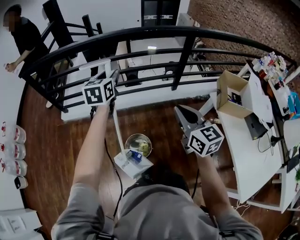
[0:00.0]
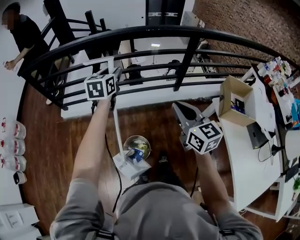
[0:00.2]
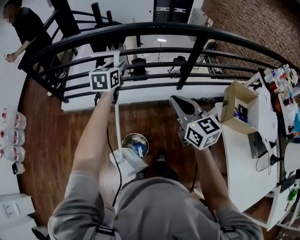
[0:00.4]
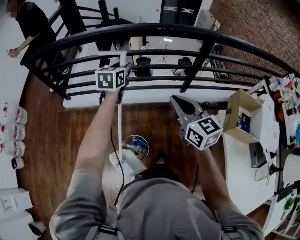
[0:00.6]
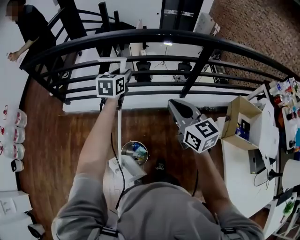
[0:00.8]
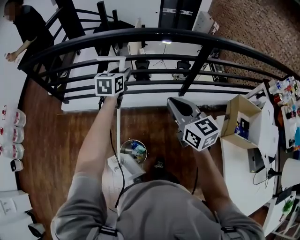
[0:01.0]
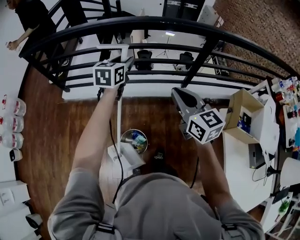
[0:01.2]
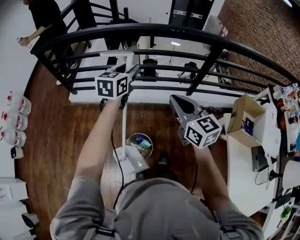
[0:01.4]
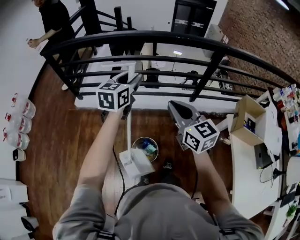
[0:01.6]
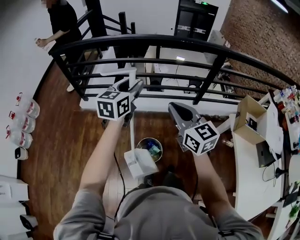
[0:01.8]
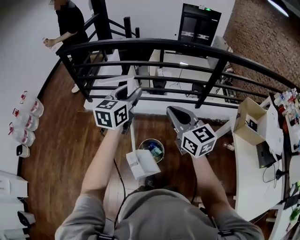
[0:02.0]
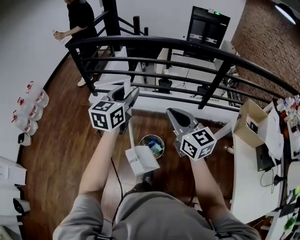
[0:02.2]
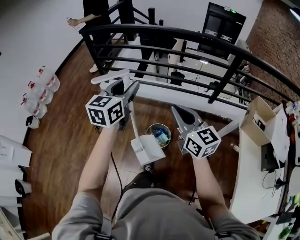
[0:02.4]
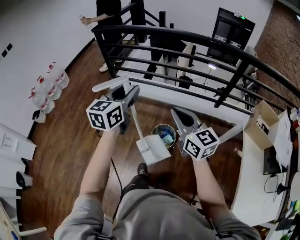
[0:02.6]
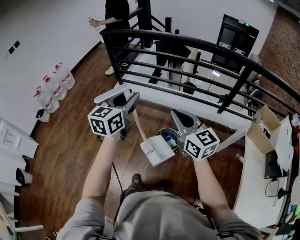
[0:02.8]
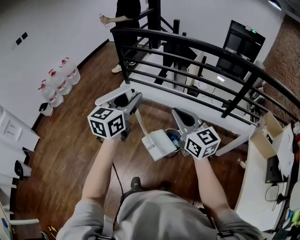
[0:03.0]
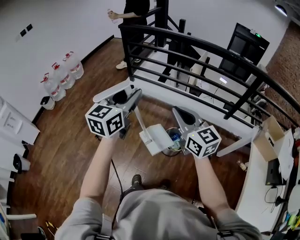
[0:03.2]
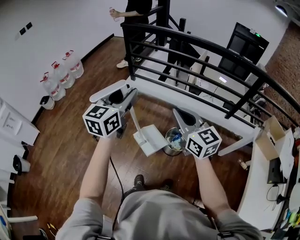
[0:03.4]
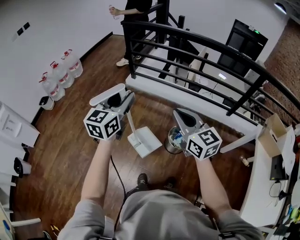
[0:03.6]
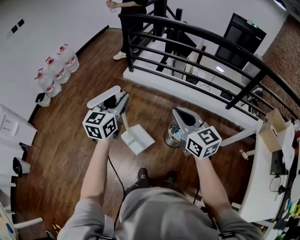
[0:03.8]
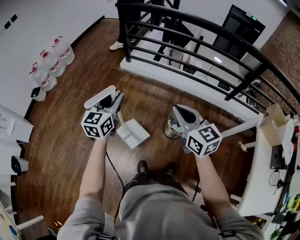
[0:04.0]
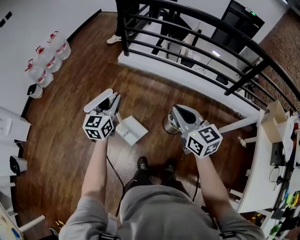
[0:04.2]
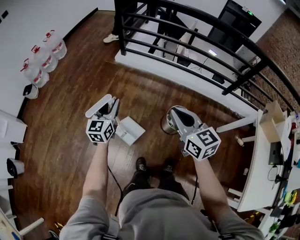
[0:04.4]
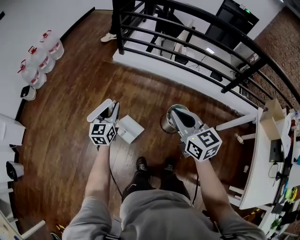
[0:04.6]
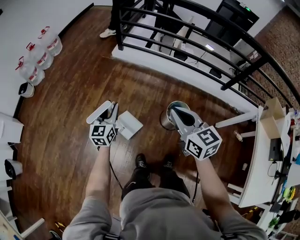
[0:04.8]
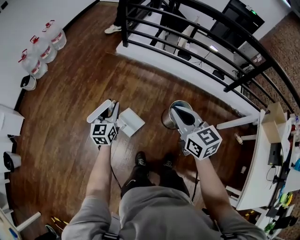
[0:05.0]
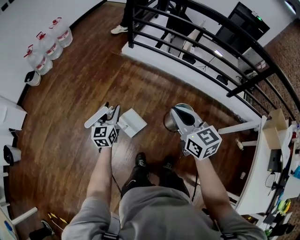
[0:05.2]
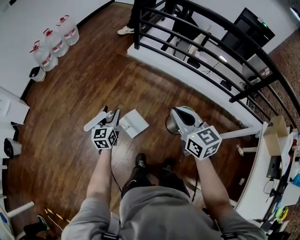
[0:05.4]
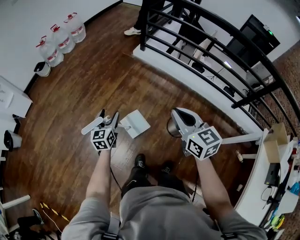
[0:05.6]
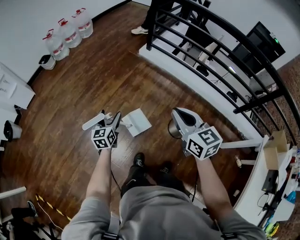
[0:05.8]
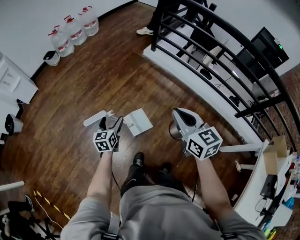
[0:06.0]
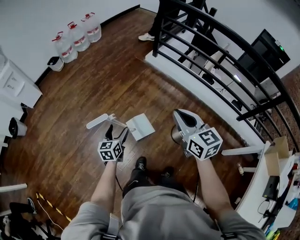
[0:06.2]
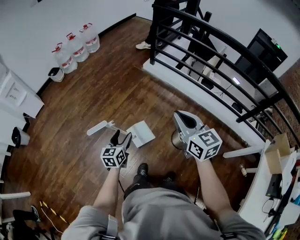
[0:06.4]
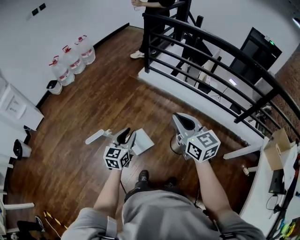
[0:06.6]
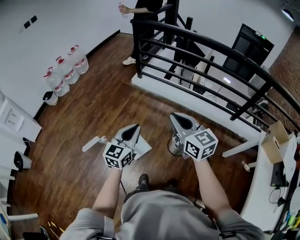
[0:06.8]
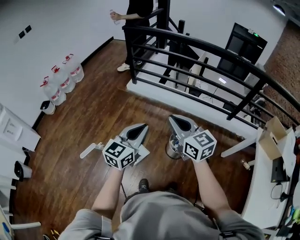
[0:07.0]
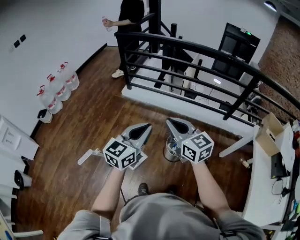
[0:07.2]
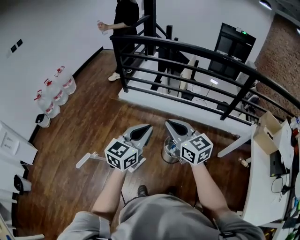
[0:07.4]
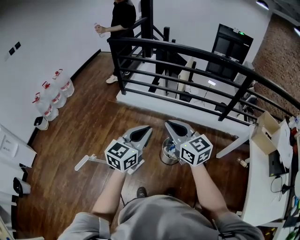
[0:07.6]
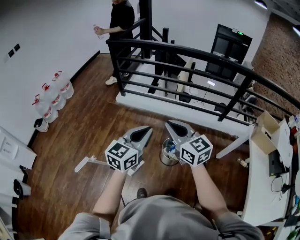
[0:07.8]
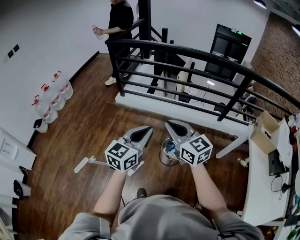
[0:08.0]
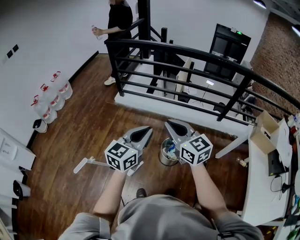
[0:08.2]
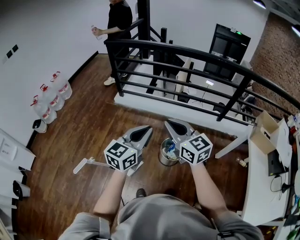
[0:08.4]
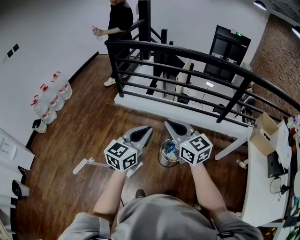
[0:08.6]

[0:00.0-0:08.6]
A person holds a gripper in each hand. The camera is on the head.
0.0 to 1.4 s: The right gripper heads forward, covering roughly 10 cm, while the left gripper heads forward, covering about 5 cm.
1.4 to 2.8 s: The grippers both shift backward and to the left by some 35 cm. The right gripper changes its angle by about 20 degrees; the left gripper changes its angle by approximately 20 degrees.
2.8 to 4.4 s: The left gripper travels to the left and downward by about 40 cm. The right gripper moves to the left and downward, approximately 25 cm.
4.4 to 5.8 s: The left gripper is displaced to the left, downward and backward by roughly 20 cm, swivels about 30 degrees, and opens, while the right gripper shifts roughly 5 cm to the left.
5.8 to 7.2 s: The left gripper ends up about 40 cm from where it was, rotates roughly 50 degrees, and closes up; the right gripper moves roughly 15 cm.
7.2 to 8.6 s: The grippers move only a little.

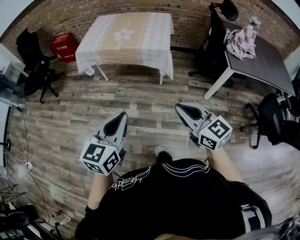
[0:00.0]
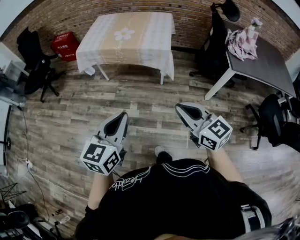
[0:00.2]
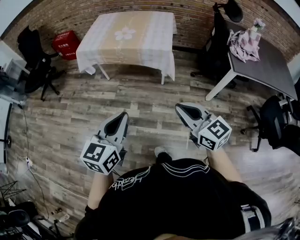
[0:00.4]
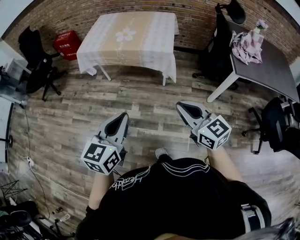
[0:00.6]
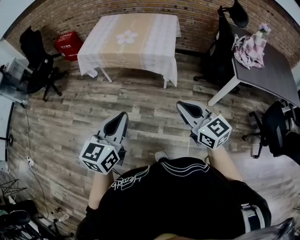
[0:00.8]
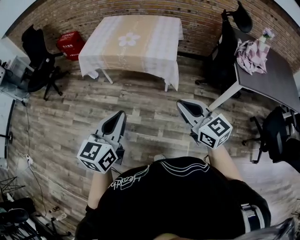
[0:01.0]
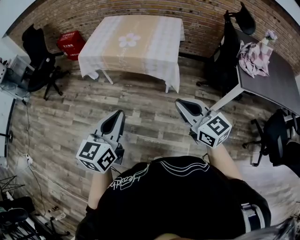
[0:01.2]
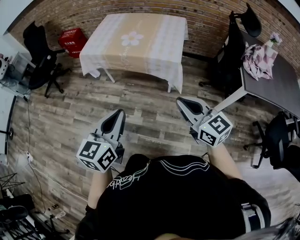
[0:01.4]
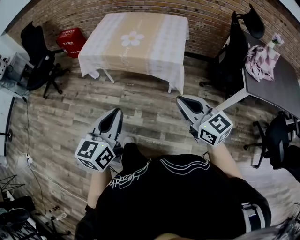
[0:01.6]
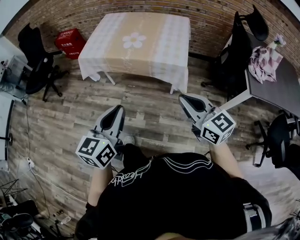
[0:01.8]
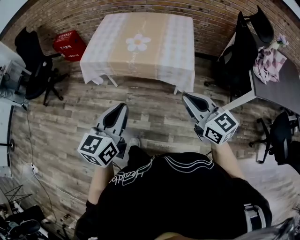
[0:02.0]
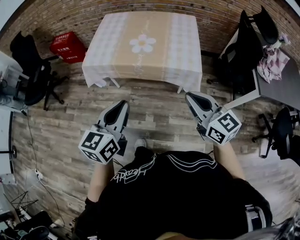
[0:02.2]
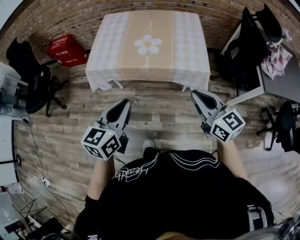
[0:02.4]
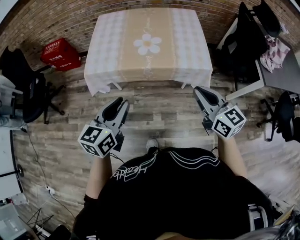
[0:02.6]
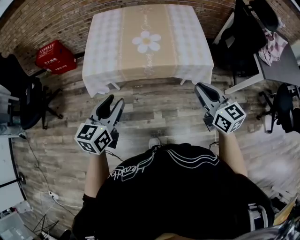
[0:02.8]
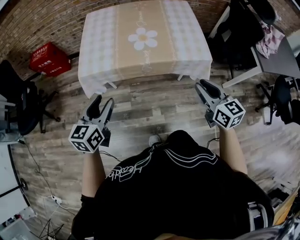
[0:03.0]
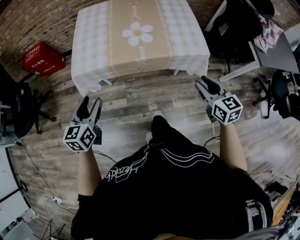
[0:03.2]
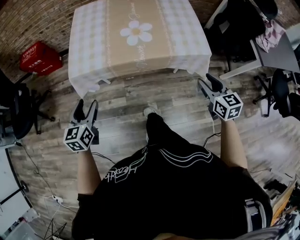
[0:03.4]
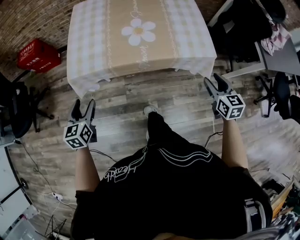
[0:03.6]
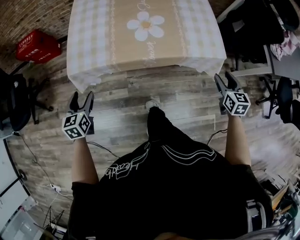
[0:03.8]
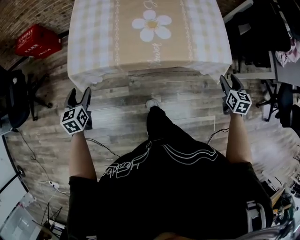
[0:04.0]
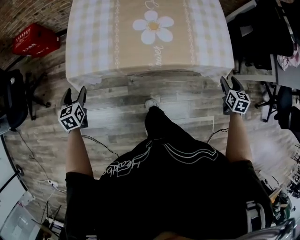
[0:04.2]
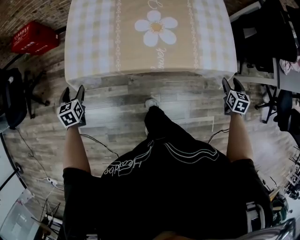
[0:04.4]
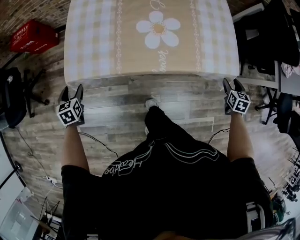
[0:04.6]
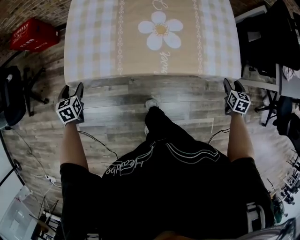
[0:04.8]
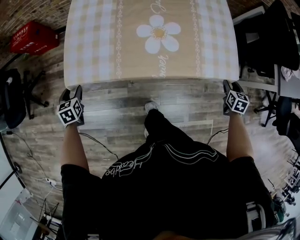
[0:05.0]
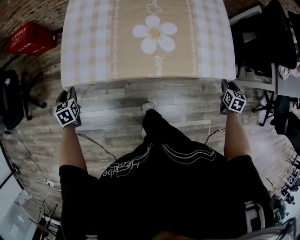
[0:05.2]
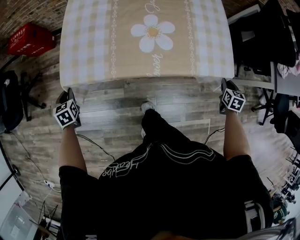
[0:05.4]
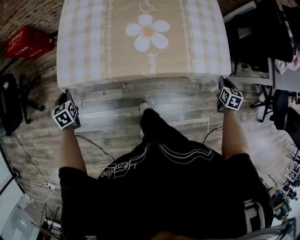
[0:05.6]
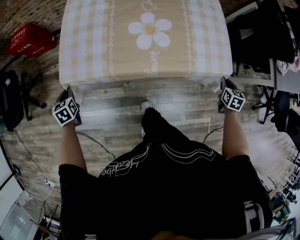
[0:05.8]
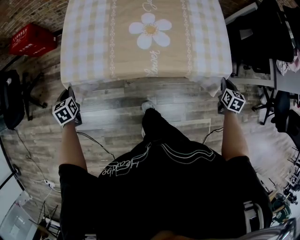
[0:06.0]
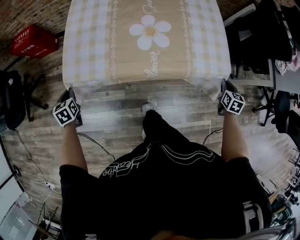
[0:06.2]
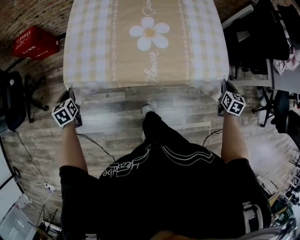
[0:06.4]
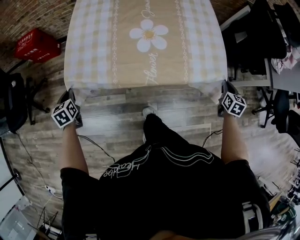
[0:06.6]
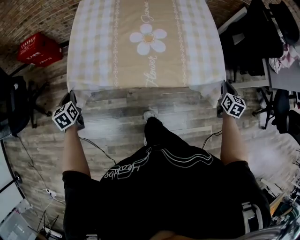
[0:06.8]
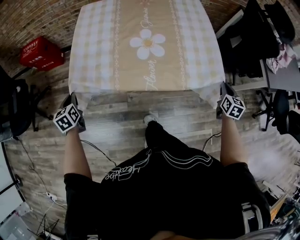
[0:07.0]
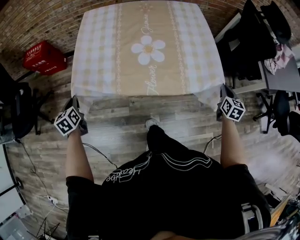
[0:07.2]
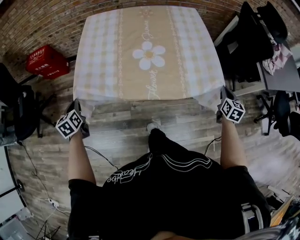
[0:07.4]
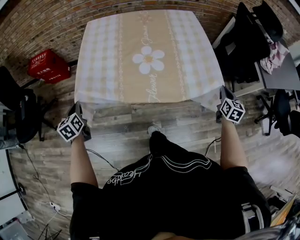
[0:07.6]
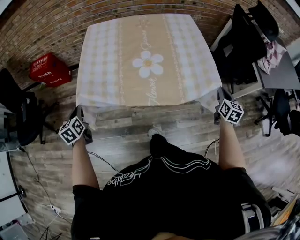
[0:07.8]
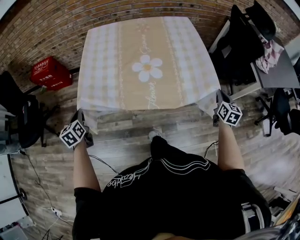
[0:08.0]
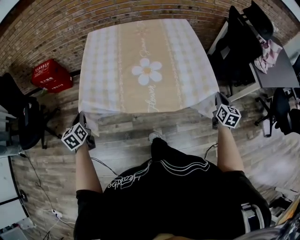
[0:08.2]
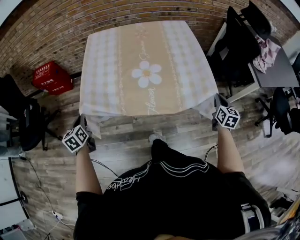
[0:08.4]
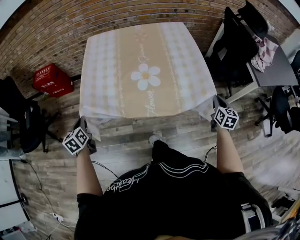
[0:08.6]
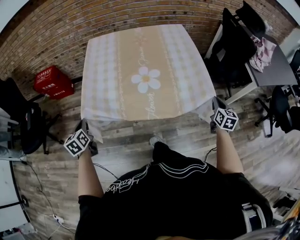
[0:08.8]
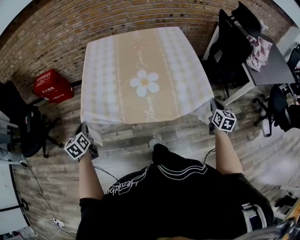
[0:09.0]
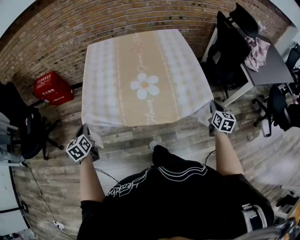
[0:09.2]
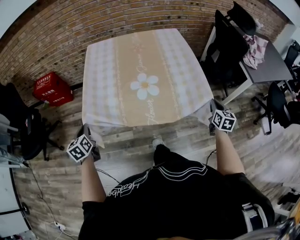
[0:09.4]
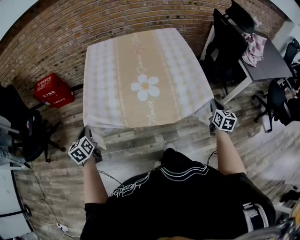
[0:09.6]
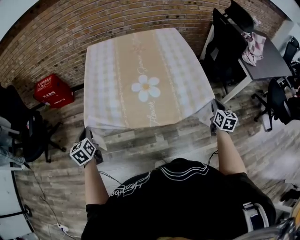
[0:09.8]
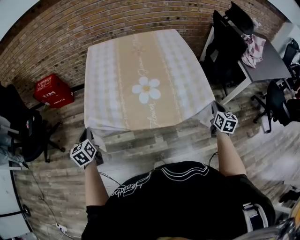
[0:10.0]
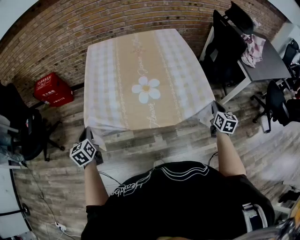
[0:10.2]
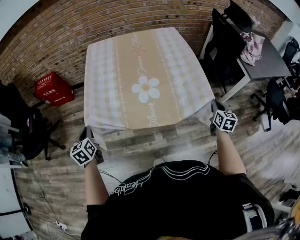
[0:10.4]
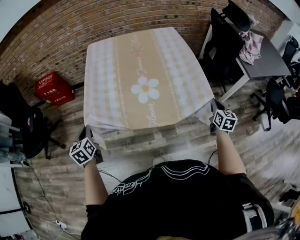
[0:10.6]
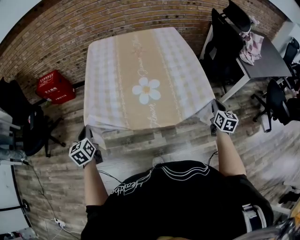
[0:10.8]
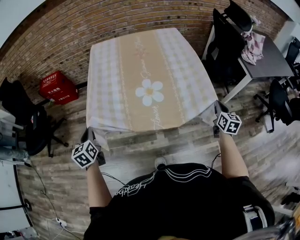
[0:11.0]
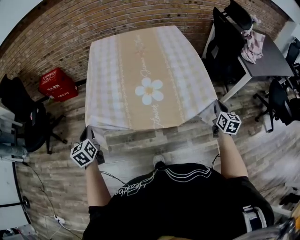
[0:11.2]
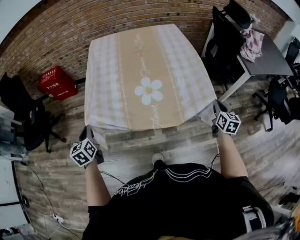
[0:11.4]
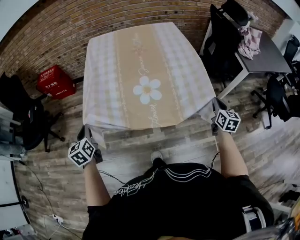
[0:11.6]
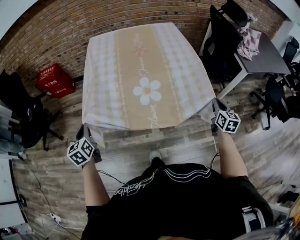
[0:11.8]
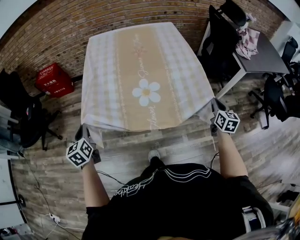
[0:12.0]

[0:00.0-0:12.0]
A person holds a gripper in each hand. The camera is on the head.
0.0 to 1.6 s: Both grippers move forward, some 20 cm.
1.6 to 3.0 s: The left gripper goes some 40 cm to the left and forward, and opens its fingers. Meanwhile the right gripper shifts some 25 cm forward and to the left, and changes its angle by approximately 30 degrees.
3.0 to 4.4 s: The left gripper shifts about 35 cm downward, to the left and forward, and turns by approximately 40 degrees. Meanwhile the right gripper is displaced downward, to the right and forward by approximately 35 cm, turns by some 40 degrees, and opens up.
4.4 to 6.0 s: The right gripper closes. The left gripper closes its fingers.
6.0 to 7.6 s: The grippers both shift upward by approximately 15 cm.
7.6 to 9.0 s: The grippers both shift backward by about 5 cm.
9.0 to 10.4 s: Both grippers travel together backward, about 5 cm.
10.4 to 12.0 s: The two grippers go about 10 cm backward.

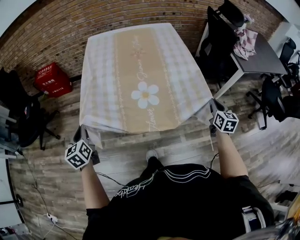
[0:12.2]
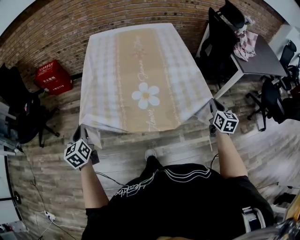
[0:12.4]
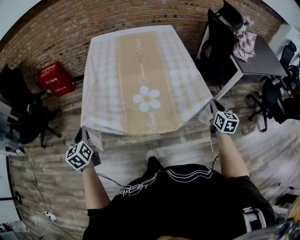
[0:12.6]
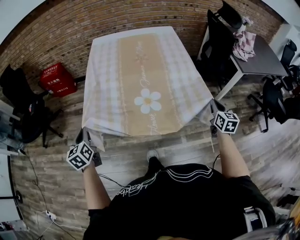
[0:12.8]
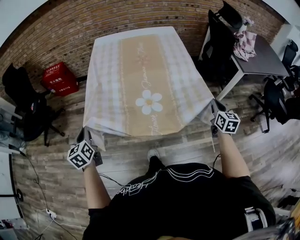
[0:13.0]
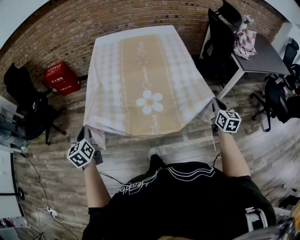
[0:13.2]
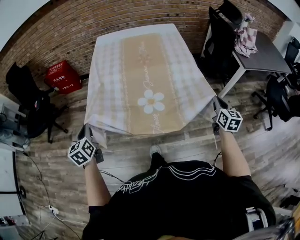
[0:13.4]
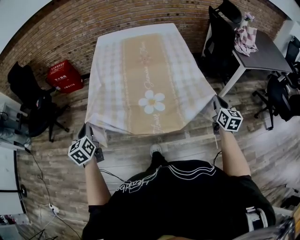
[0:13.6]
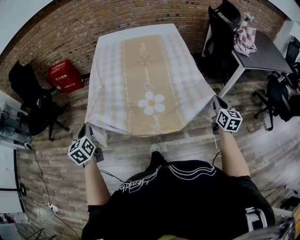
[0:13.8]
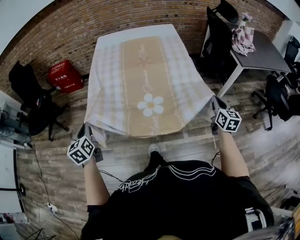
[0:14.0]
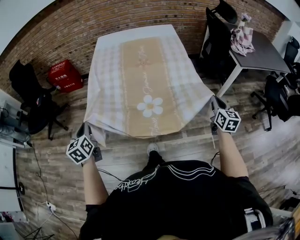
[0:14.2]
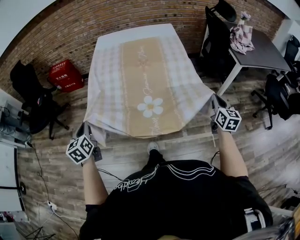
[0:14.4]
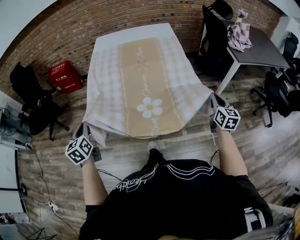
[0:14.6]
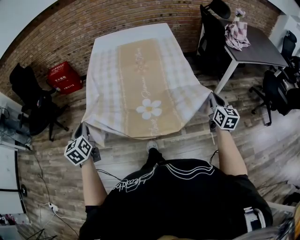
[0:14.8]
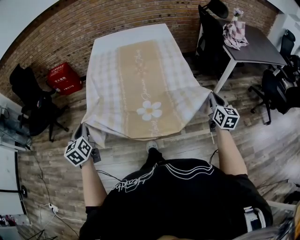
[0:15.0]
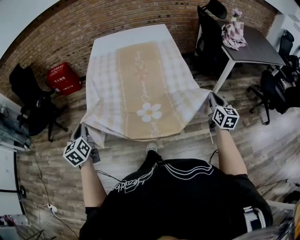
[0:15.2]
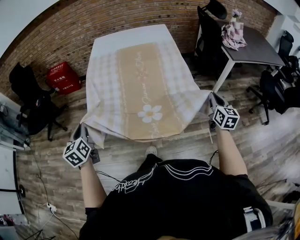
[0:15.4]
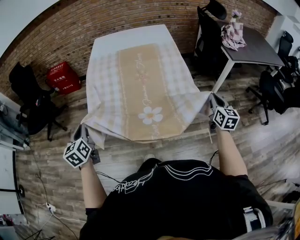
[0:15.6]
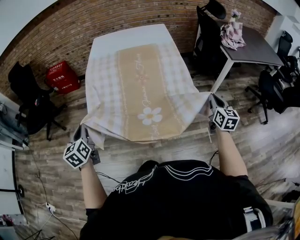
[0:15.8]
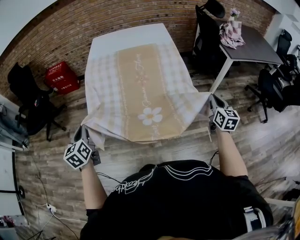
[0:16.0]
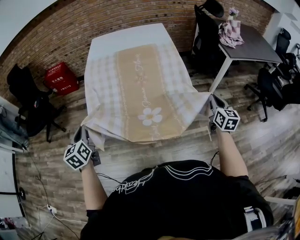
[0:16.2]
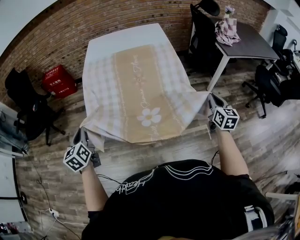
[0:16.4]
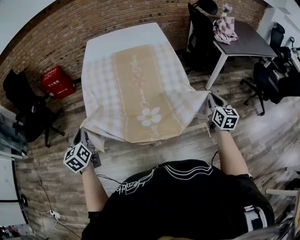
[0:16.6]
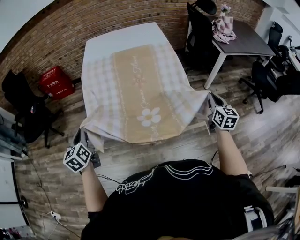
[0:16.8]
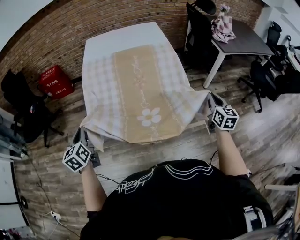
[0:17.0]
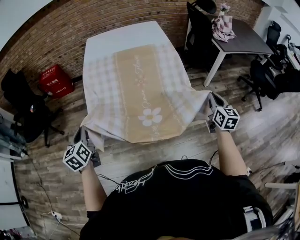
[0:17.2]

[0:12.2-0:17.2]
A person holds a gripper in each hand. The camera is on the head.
12.2 to 13.8 s: The two grippers go about 10 cm backward.
13.8 to 15.6 s: Both grippers move backward, approximately 10 cm.
15.6 to 17.2 s: The right gripper is displaced backward and to the left by some 10 cm.
